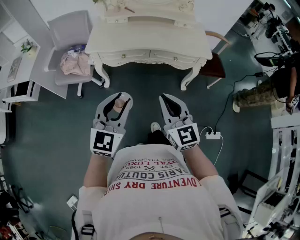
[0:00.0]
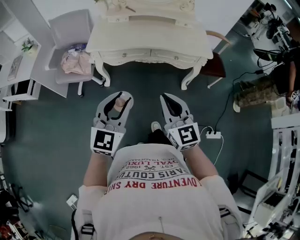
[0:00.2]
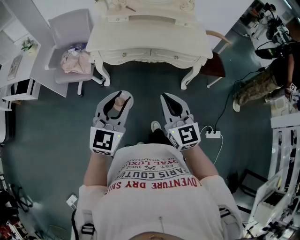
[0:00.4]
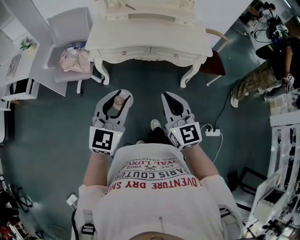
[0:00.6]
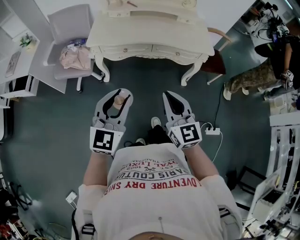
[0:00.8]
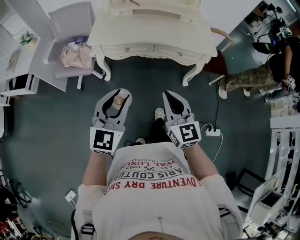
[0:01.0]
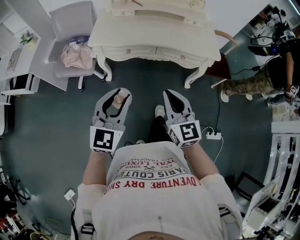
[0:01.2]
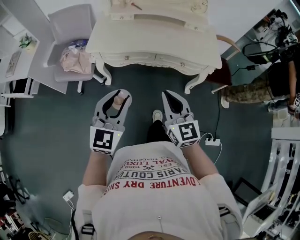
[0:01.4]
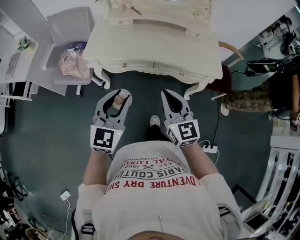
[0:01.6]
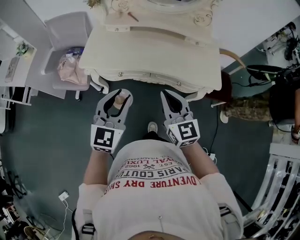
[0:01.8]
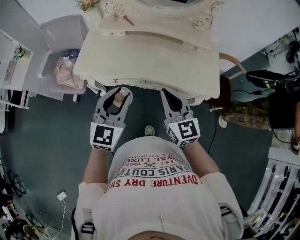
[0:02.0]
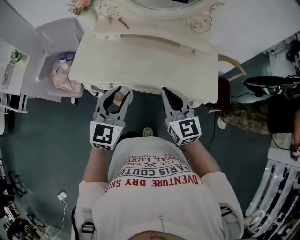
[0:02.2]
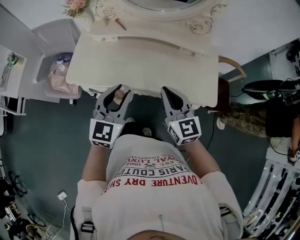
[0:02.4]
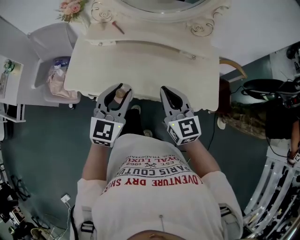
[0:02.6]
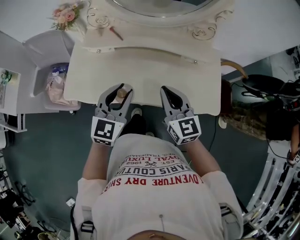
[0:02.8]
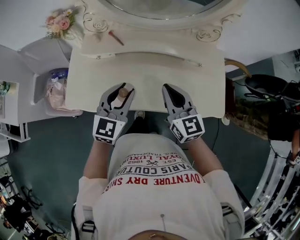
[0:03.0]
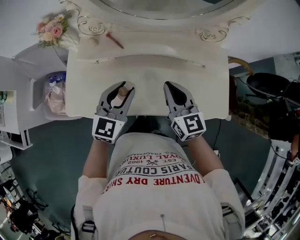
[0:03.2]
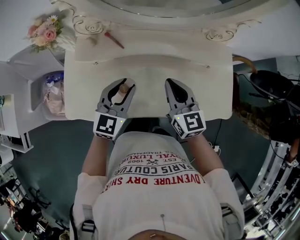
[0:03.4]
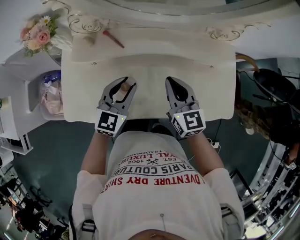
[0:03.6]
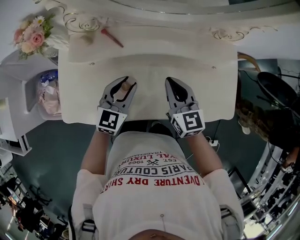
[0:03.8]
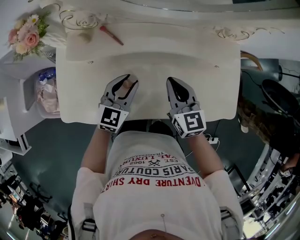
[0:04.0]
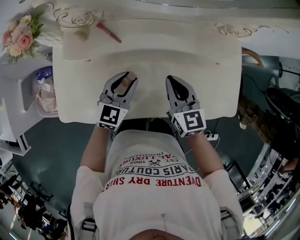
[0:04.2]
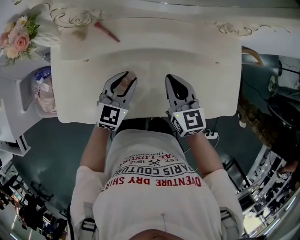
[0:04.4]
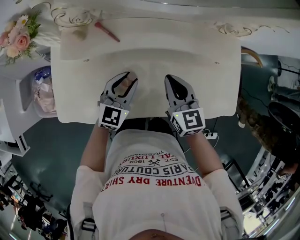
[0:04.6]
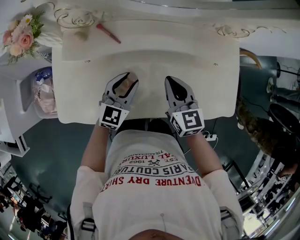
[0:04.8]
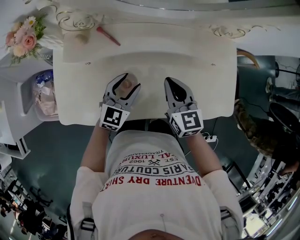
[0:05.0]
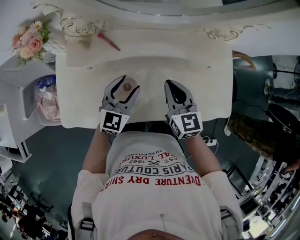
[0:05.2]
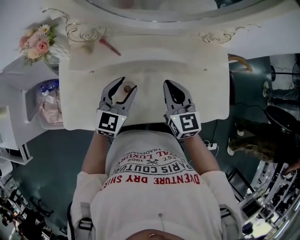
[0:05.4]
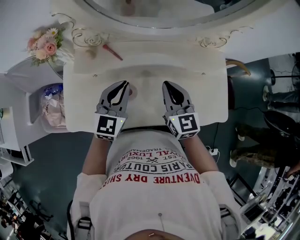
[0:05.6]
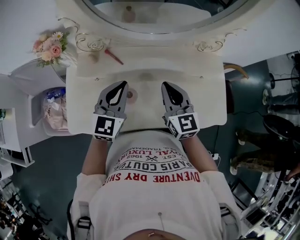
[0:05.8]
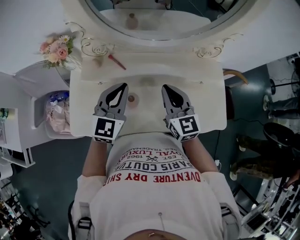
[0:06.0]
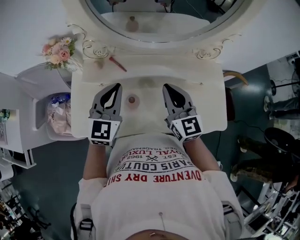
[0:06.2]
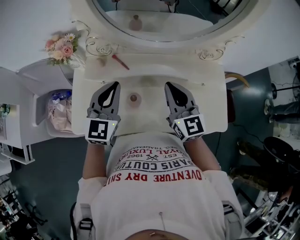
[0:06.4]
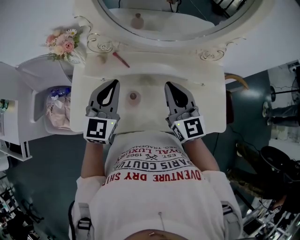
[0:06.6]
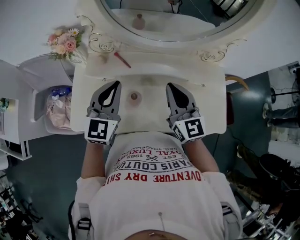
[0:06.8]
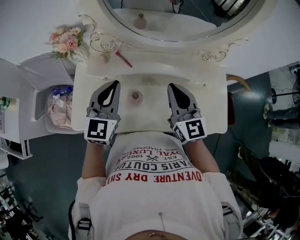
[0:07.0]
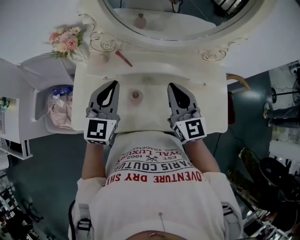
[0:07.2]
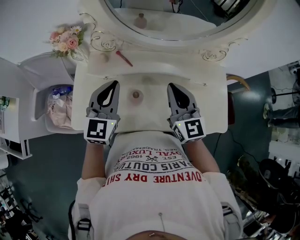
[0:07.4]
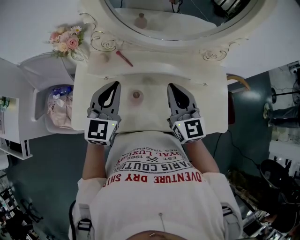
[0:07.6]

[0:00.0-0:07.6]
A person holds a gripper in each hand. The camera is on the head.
0:00.0 to 0:01.6: Both grippers travel together forward, some 20 cm.
0:01.6 to 0:03.0: The grippers both shift forward by approximately 40 cm.
0:03.0 to 0:04.6: The two grippers go approximately 20 cm downward and forward.
0:04.6 to 0:06.0: The left gripper goes roughly 20 cm upward, and closes. The right gripper goes approximately 10 cm upward.
0:06.0 to 0:07.6: The left gripper heads to the left, covering approximately 5 cm.

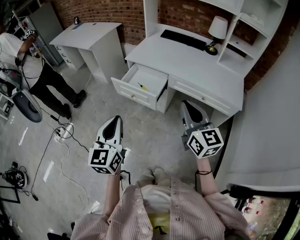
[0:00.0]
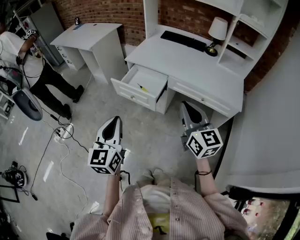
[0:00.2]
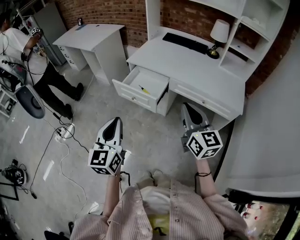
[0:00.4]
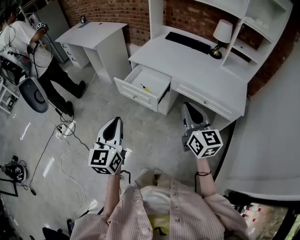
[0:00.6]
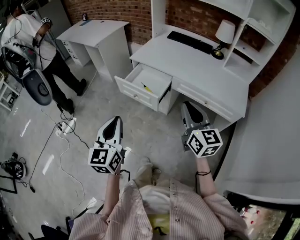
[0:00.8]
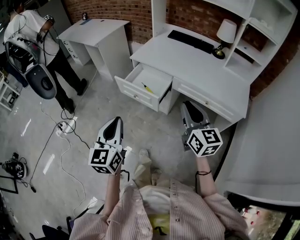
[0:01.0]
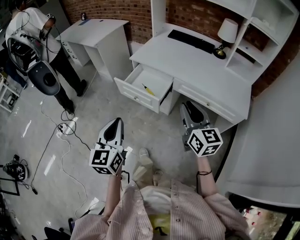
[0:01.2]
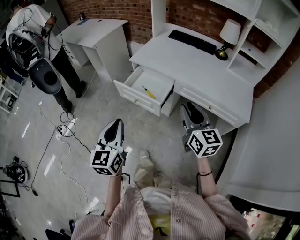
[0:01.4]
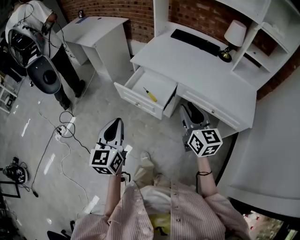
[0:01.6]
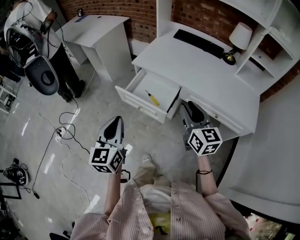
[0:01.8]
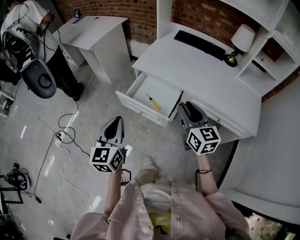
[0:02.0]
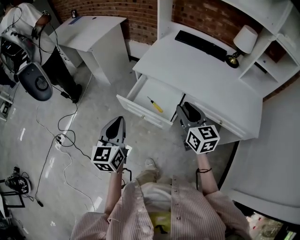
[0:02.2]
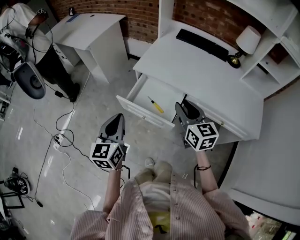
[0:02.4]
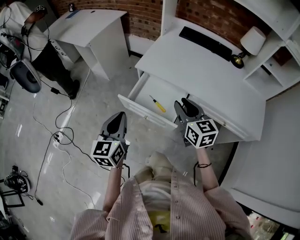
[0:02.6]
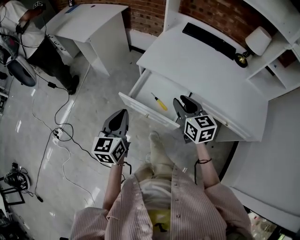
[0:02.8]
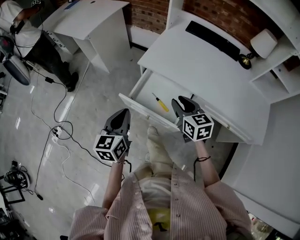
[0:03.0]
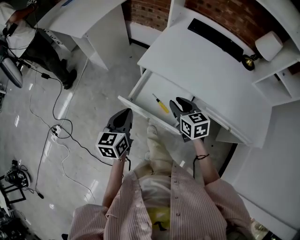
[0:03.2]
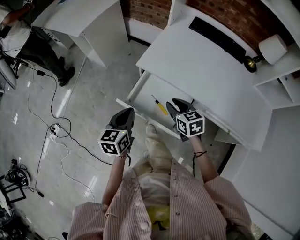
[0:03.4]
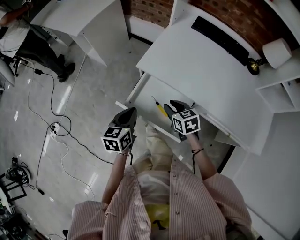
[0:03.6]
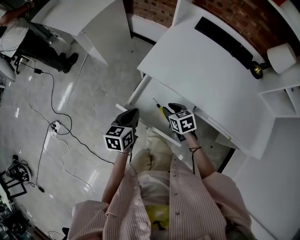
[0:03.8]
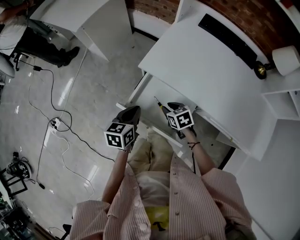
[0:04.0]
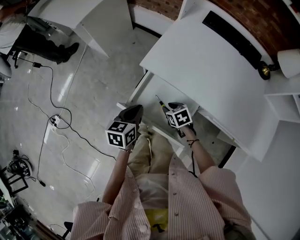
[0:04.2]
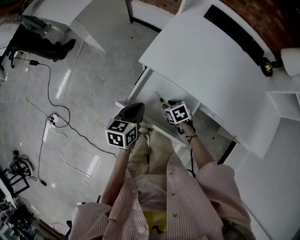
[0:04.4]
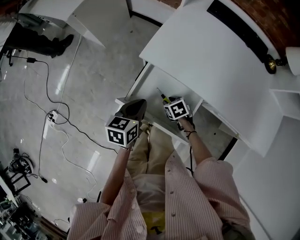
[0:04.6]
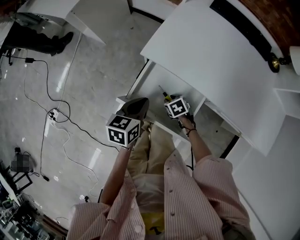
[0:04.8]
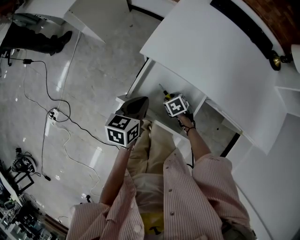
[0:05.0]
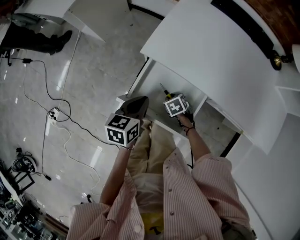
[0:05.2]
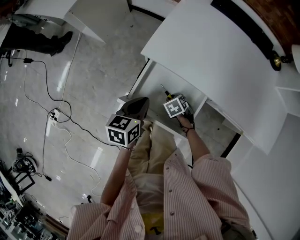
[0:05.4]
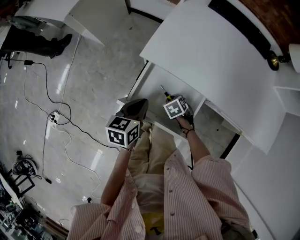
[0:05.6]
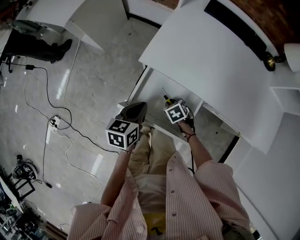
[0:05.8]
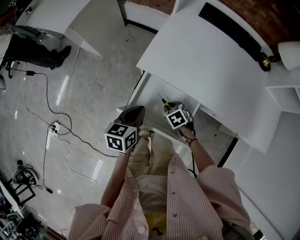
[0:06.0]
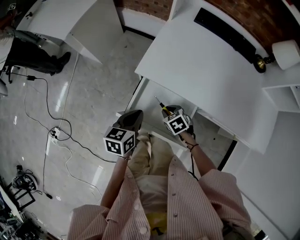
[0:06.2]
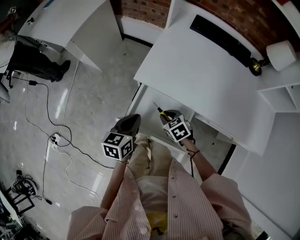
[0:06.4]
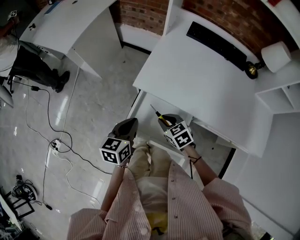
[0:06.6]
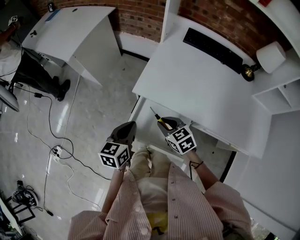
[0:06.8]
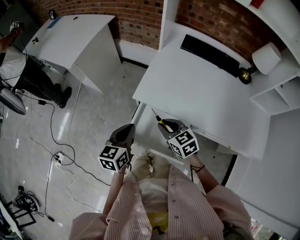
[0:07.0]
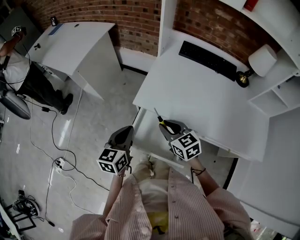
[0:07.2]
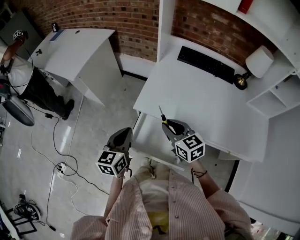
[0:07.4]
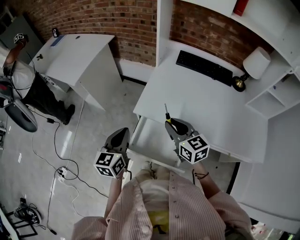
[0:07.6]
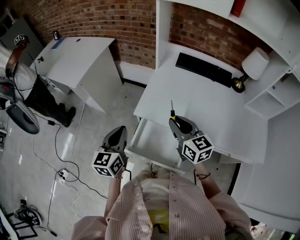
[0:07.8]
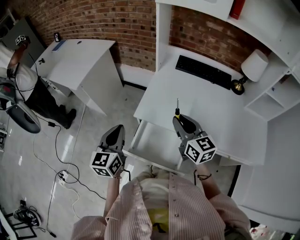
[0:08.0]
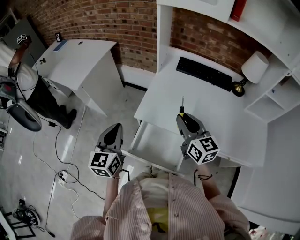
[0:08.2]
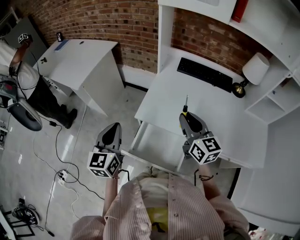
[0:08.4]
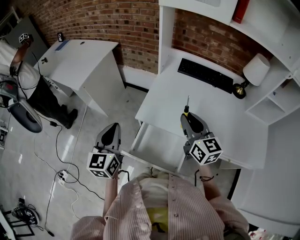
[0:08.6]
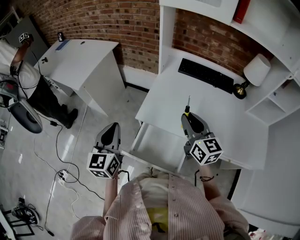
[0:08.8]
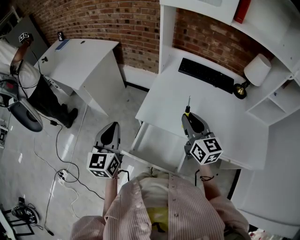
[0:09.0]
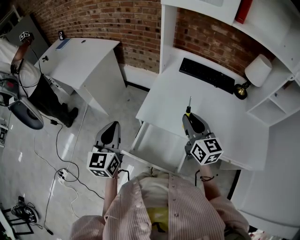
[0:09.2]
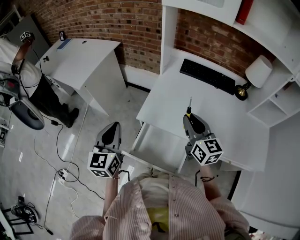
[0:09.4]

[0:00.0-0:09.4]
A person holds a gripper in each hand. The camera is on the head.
0:00.0 to 0:01.6: The left gripper is displaced forward by some 10 cm. The right gripper shifts about 15 cm forward and downward, and opens.
0:01.6 to 0:03.2: The right gripper travels forward, downward and to the left by roughly 35 cm, and changes its angle by some 30 degrees. The left gripper is displaced forward and downward by approximately 30 cm.
0:03.2 to 0:04.8: The left gripper moves downward, forward and to the right, about 15 cm, and rotates approximately 20 degrees, while the right gripper moves downward, some 30 cm, and tips its fingers downward by roughly 40 degrees.
0:04.8 to 0:06.2: The right gripper is displaced upward by roughly 10 cm.
0:06.2 to 0:07.8: The right gripper moves upward, about 30 cm, and tips its fingers upward by some 50 degrees. Meanwhile the left gripper goes roughly 15 cm upward, and turns by roughly 30 degrees.
0:07.8 to 0:09.4: The right gripper heads to the right, covering roughly 5 cm. The left gripper travels upward by roughly 5 cm.

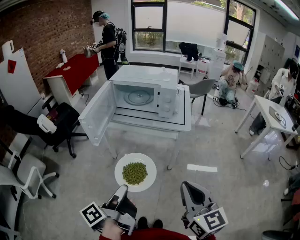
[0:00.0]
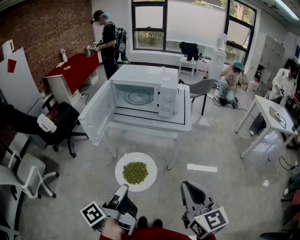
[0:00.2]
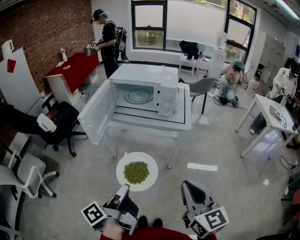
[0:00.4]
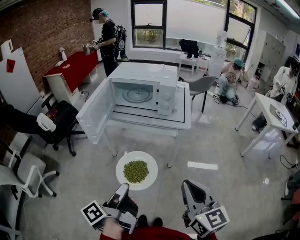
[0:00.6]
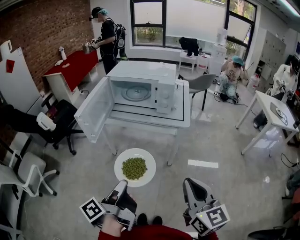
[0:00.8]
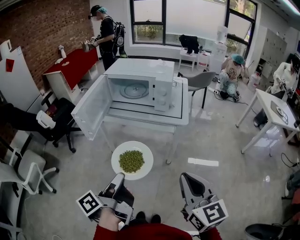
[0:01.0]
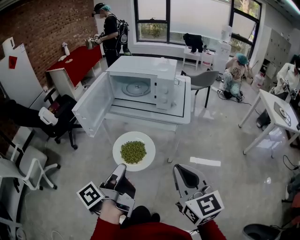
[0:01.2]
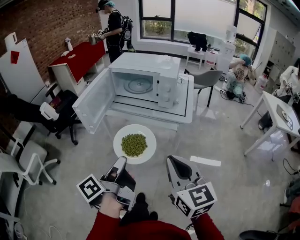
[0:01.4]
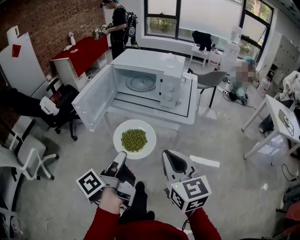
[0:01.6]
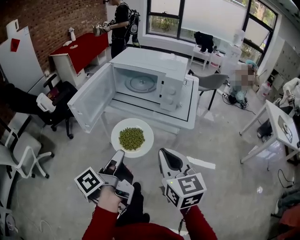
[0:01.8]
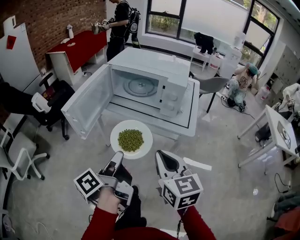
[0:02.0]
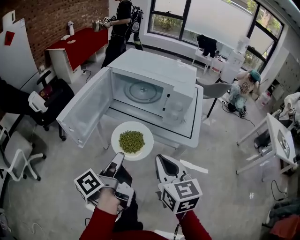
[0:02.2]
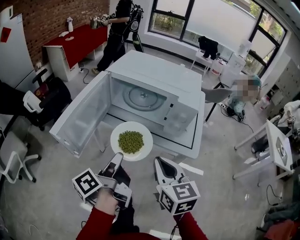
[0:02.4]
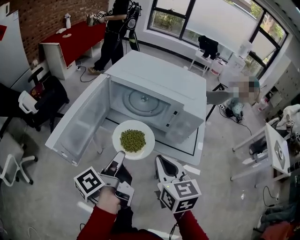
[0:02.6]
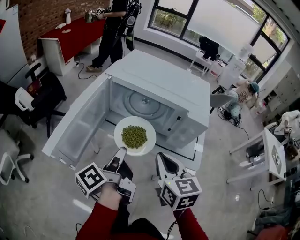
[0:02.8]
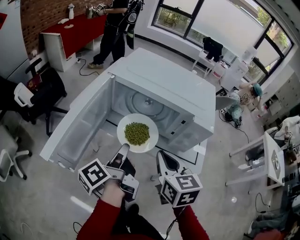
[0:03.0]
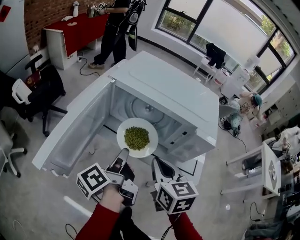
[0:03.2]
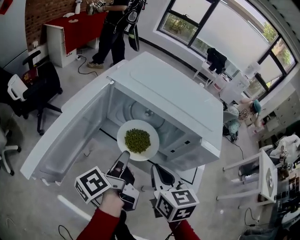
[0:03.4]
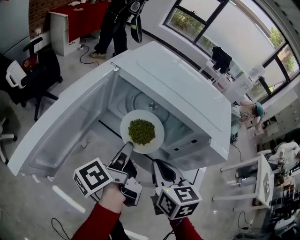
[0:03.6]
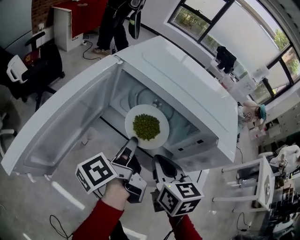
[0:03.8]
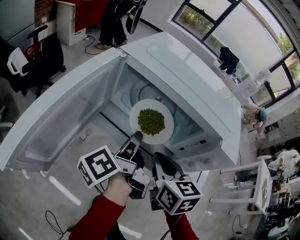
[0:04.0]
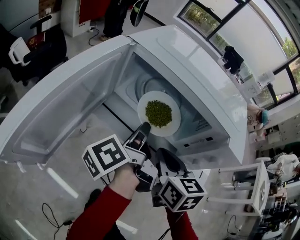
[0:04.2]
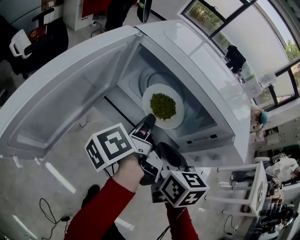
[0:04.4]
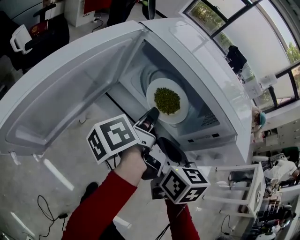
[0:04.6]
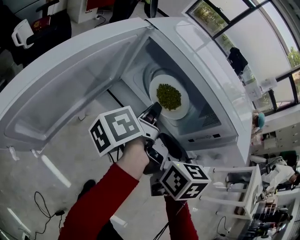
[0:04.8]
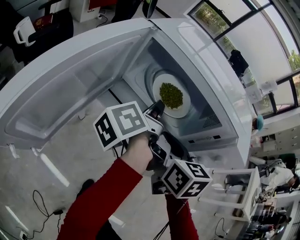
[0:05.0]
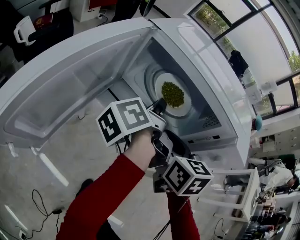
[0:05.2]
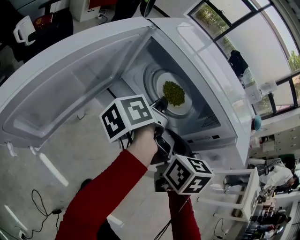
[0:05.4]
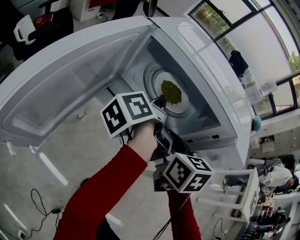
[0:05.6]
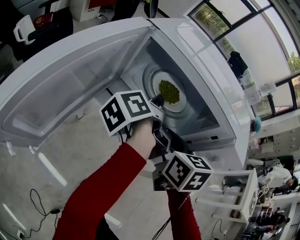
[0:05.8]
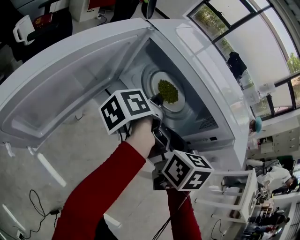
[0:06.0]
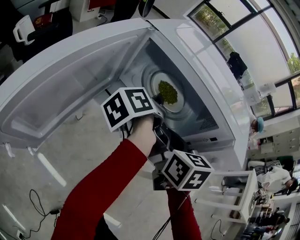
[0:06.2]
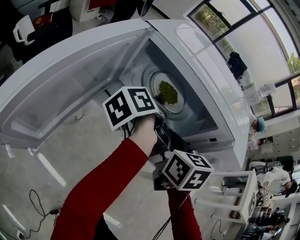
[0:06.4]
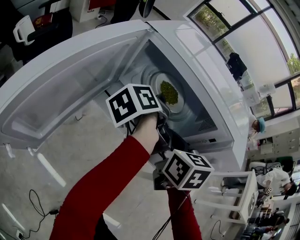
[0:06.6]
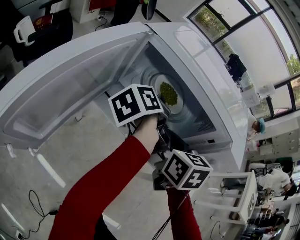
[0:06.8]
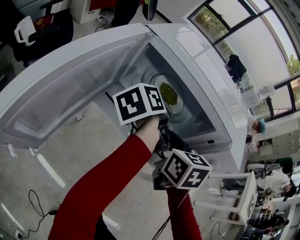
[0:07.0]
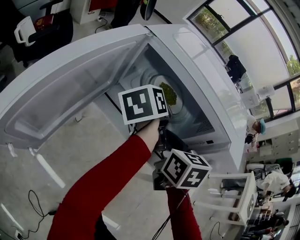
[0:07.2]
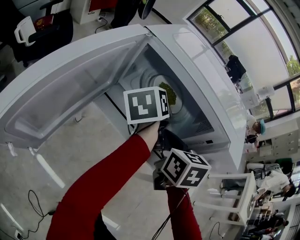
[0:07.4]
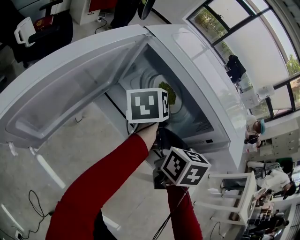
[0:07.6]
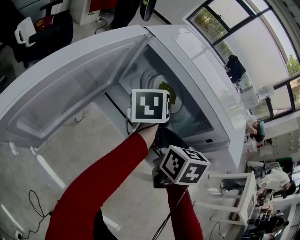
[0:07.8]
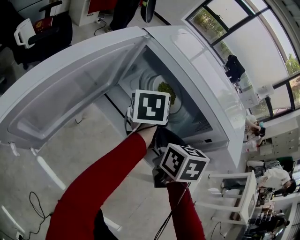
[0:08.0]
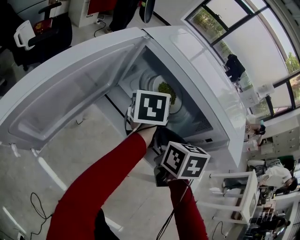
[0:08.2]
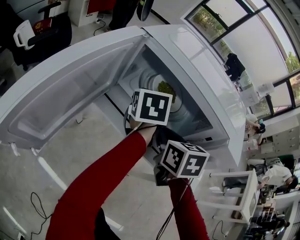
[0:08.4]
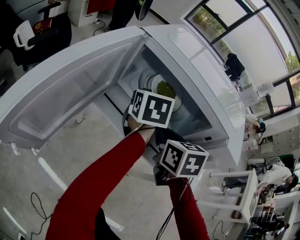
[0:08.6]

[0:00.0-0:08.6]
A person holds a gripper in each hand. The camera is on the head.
0:00.0 to 0:01.4: The two grippers go some 5 cm forward.
0:01.4 to 0:02.8: The grippers both shift forward by about 30 cm.
0:02.8 to 0:04.4: The two grippers go some 15 cm forward and downward.
0:04.4 to 0:05.8: The left gripper goes roughly 5 cm forward.
0:05.8 to 0:07.2: The left gripper swivels some 30 degrees.
0:07.2 to 0:08.6: The left gripper turns by approximately 40 degrees.
